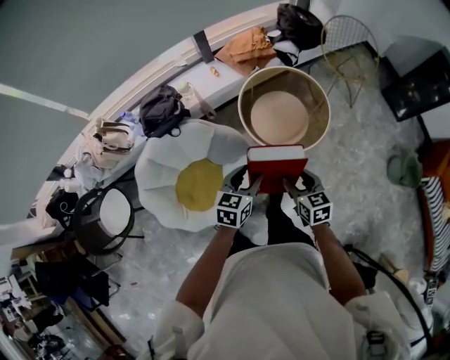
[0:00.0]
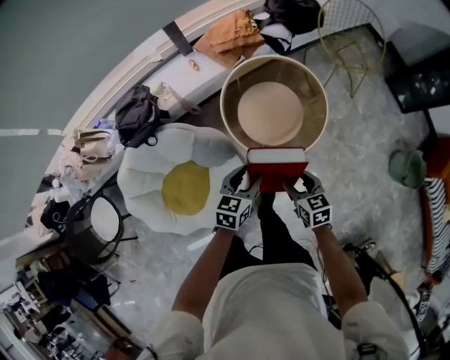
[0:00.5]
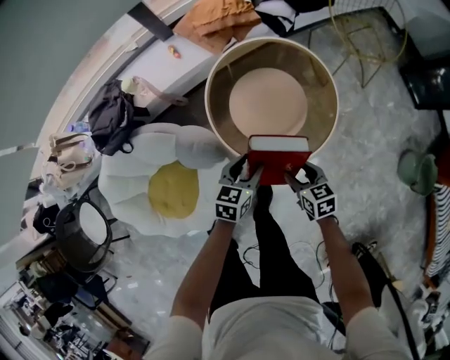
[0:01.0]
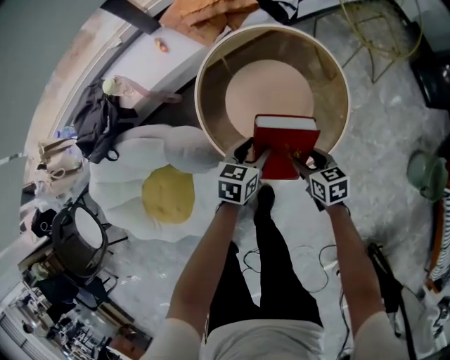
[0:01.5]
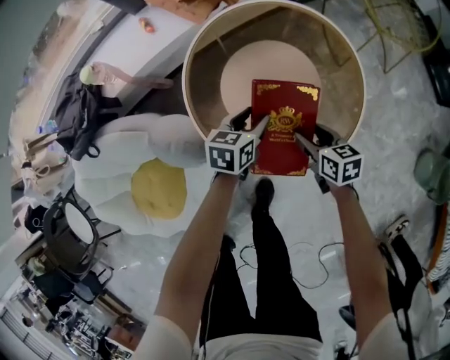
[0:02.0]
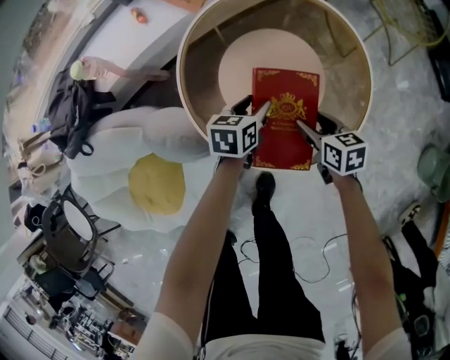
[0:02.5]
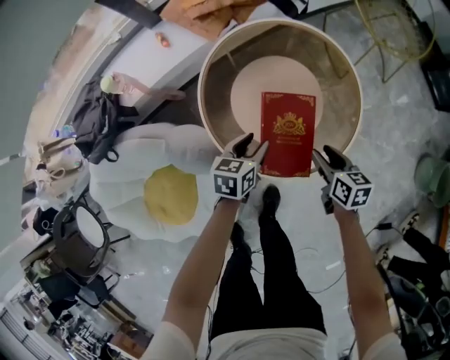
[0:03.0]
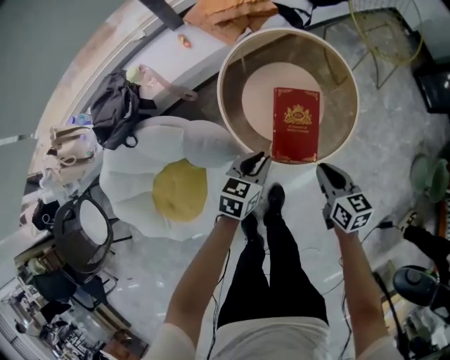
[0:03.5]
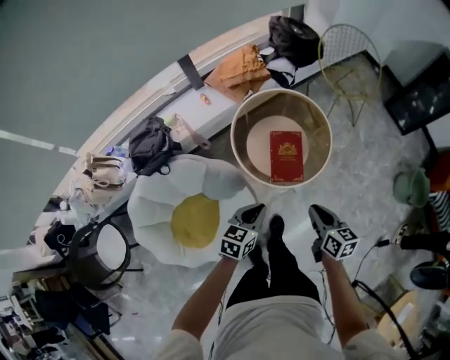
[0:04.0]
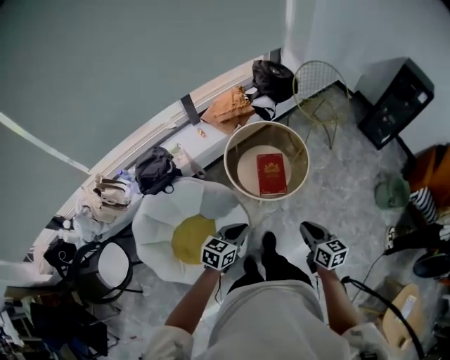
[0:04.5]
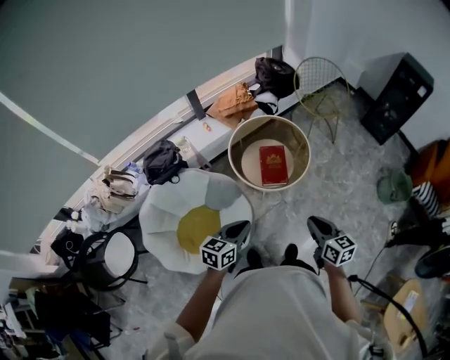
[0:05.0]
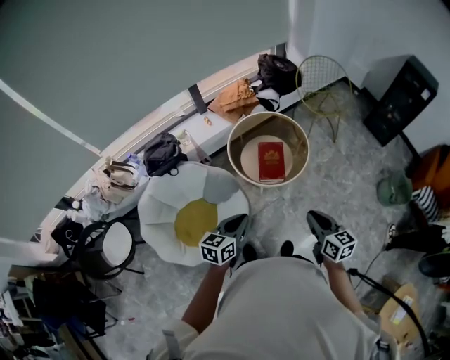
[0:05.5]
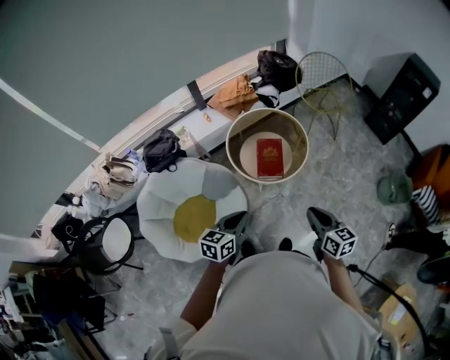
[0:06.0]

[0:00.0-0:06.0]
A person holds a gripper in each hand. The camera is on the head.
0.0 to 2.0 s: The two grippers go some 50 cm downward and forward. The right gripper turns by approximately 20 degrees.
2.0 to 4.0 s: The two grippers go approximately 40 cm upward and backward. The right gripper turns by about 20 degrees, and closes; the left gripper closes its fingers.
4.0 to 6.0 s: The right gripper moves upward, backward and to the right, some 25 cm. The left gripper travels upward and backward by about 25 cm.

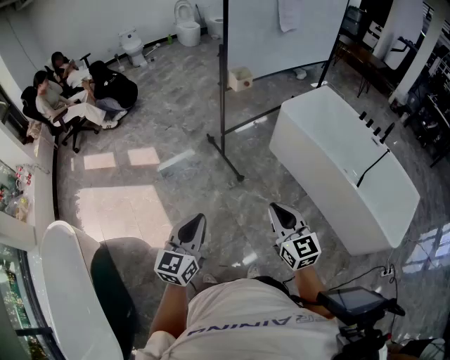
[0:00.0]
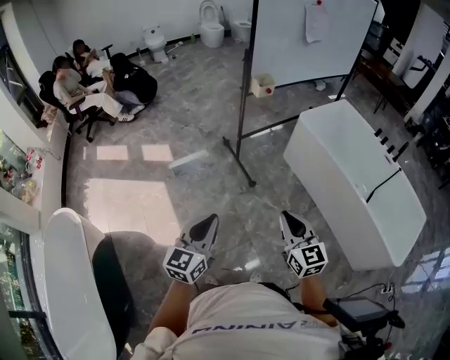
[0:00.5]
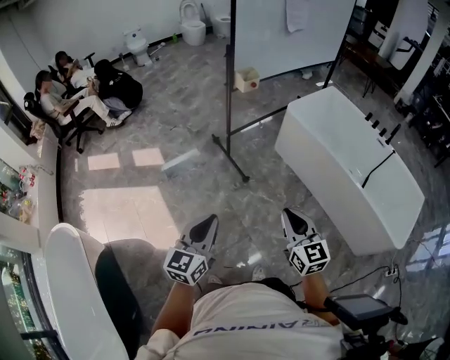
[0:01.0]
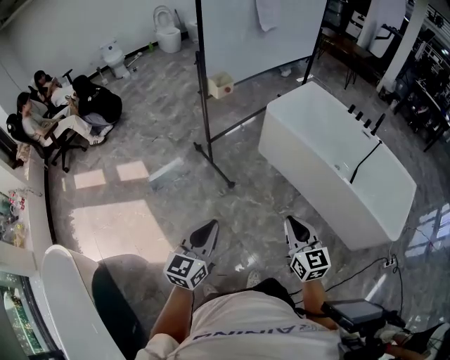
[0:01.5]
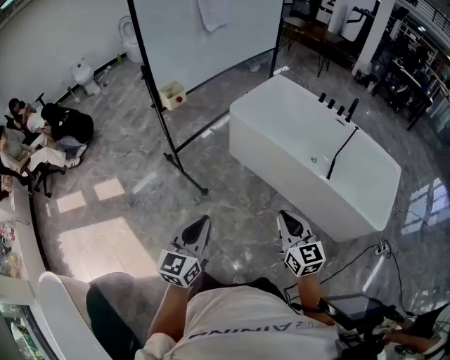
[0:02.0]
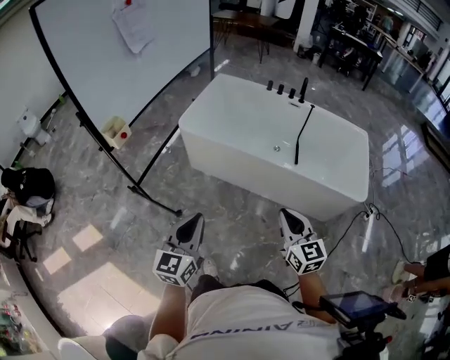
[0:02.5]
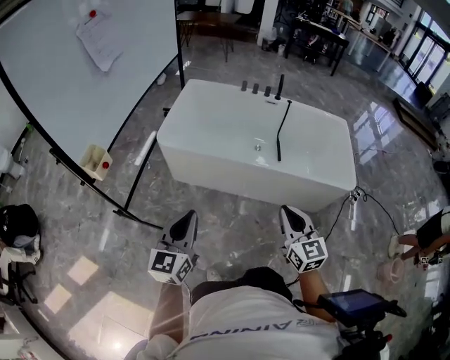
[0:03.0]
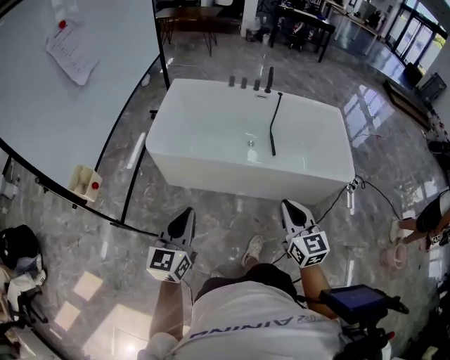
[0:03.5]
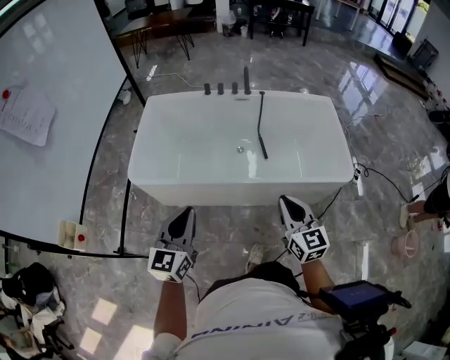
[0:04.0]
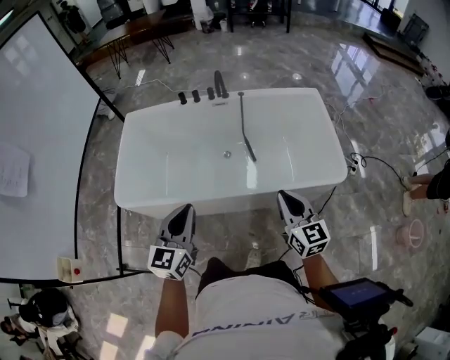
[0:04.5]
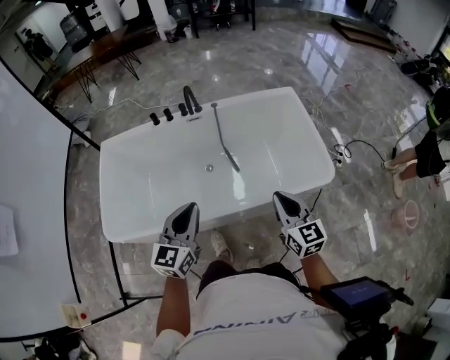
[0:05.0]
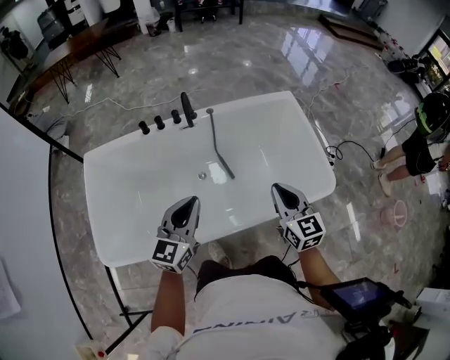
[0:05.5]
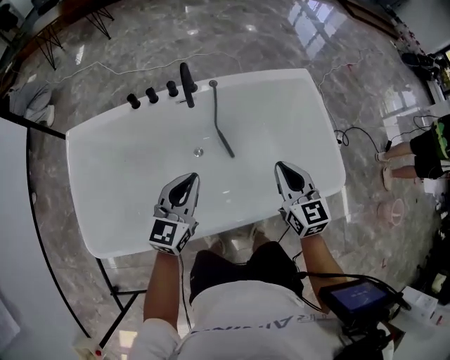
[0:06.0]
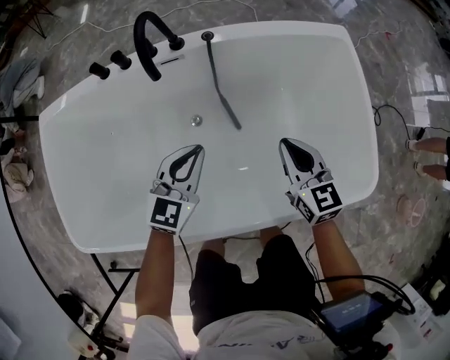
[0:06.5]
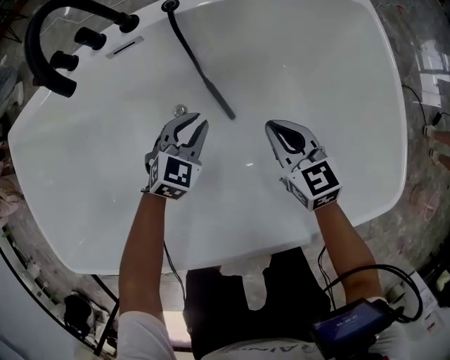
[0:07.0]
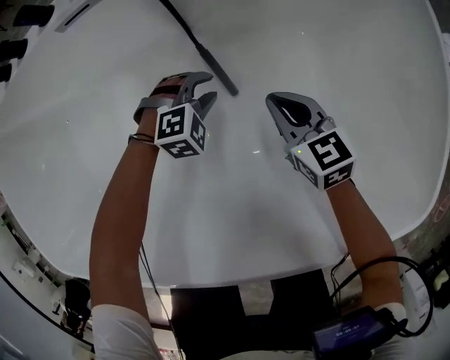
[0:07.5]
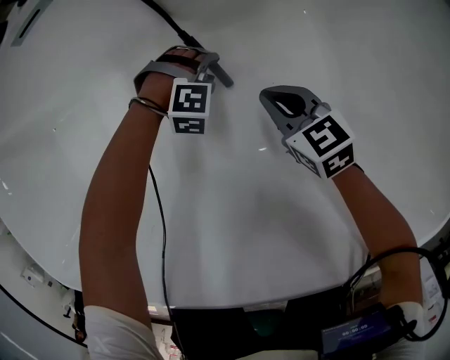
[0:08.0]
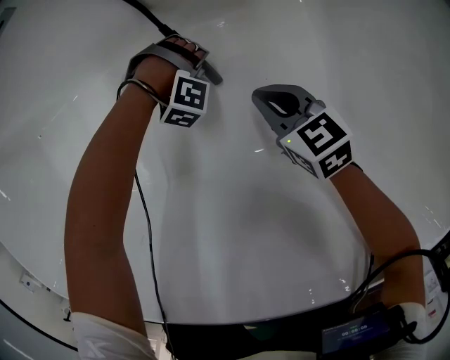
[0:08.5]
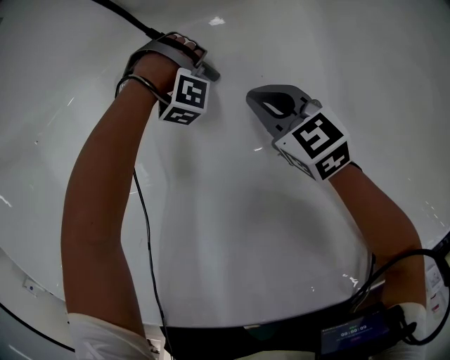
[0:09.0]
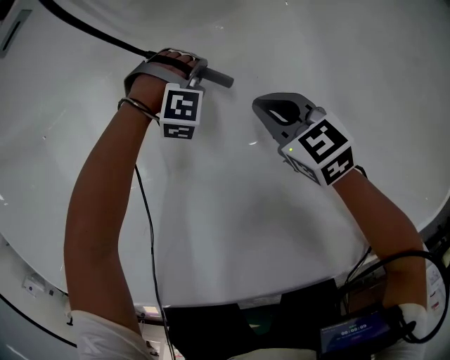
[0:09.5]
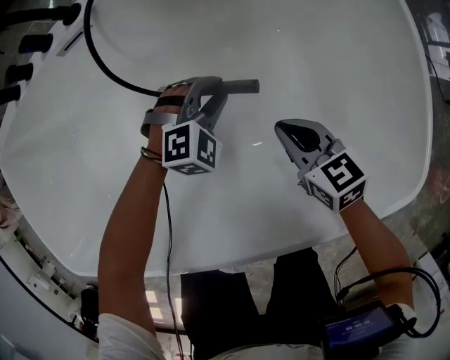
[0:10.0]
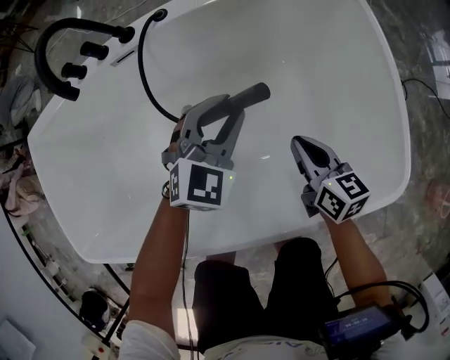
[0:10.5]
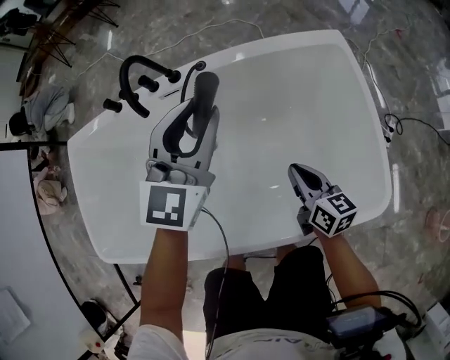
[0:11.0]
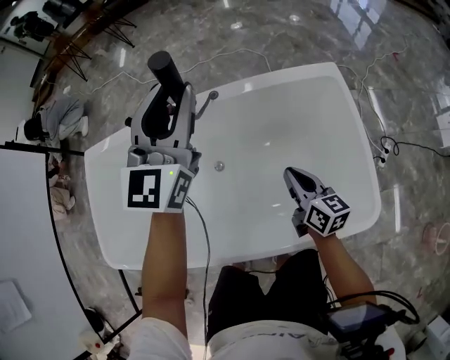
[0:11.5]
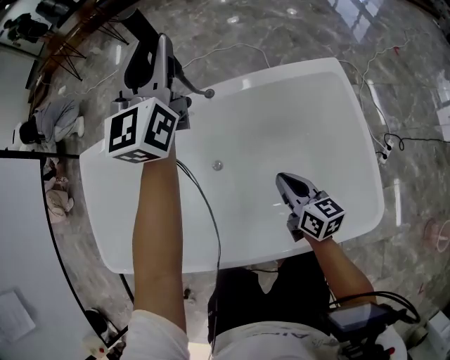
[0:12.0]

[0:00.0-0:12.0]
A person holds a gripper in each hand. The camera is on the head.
0.0 to 2.0 s: The left gripper shifts roughly 25 cm to the right and forward; the right gripper goes about 25 cm to the right, and swivels some 20 degrees.
2.0 to 4.0 s: The right gripper moves some 35 cm, and rotates about 40 degrees. The left gripper moves about 50 cm, and turns by roughly 30 degrees.
4.0 to 6.0 s: The two grippers travel together, forward, about 50 cm. The left gripper rotates approximately 20 degrees.
6.0 to 8.0 s: Both grippers move downward, about 70 cm. The right gripper rotates roughly 40 degrees. The left gripper tilts its fingers approximately 60 degrees downward, and opens up.
8.0 to 10.0 s: Both grippers move upward, approximately 20 cm. The left gripper changes its angle by about 30 degrees.
10.0 to 12.0 s: The left gripper travels upward by roughly 60 cm, and tilts its fingers about 60 degrees upward, while the right gripper travels upward by some 30 cm, and rotates some 30 degrees.

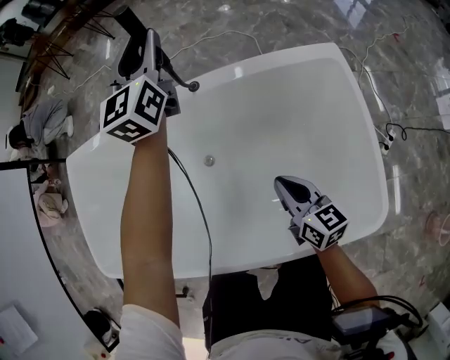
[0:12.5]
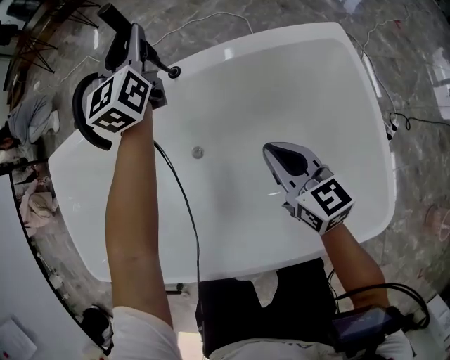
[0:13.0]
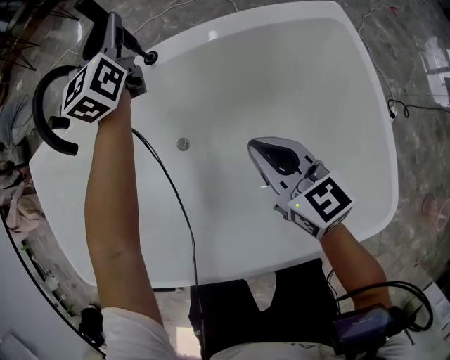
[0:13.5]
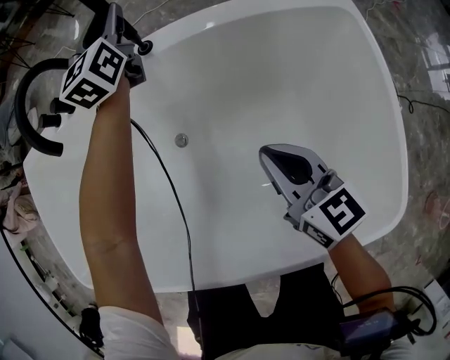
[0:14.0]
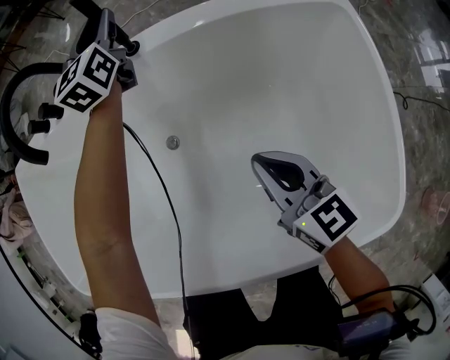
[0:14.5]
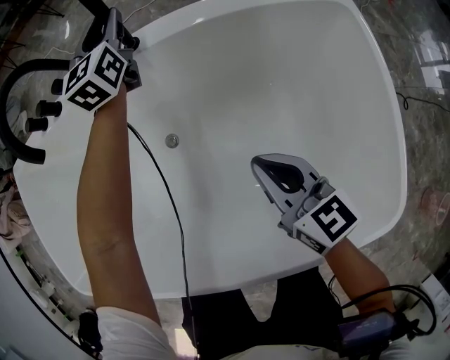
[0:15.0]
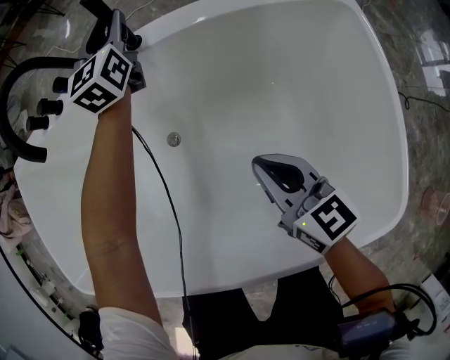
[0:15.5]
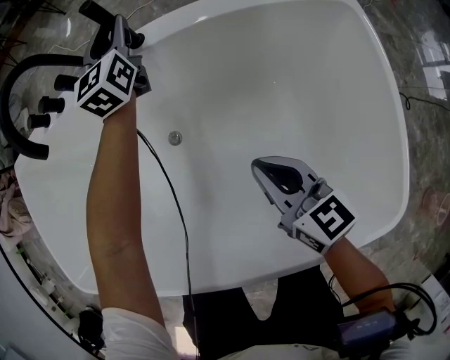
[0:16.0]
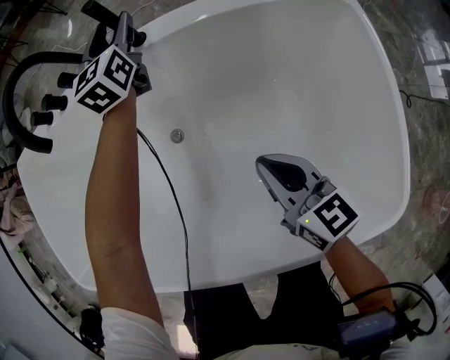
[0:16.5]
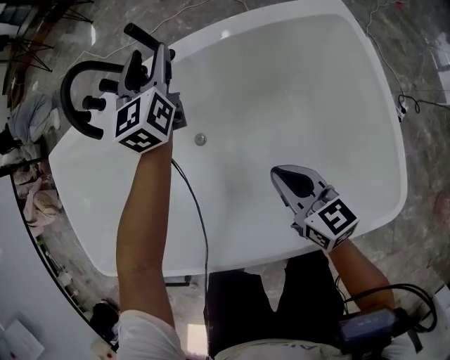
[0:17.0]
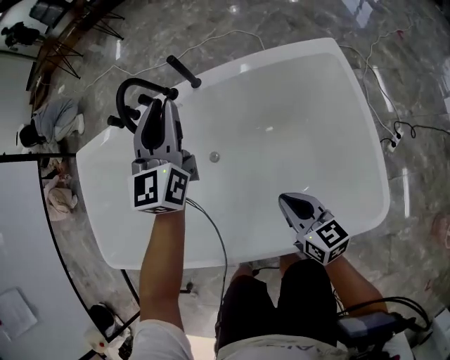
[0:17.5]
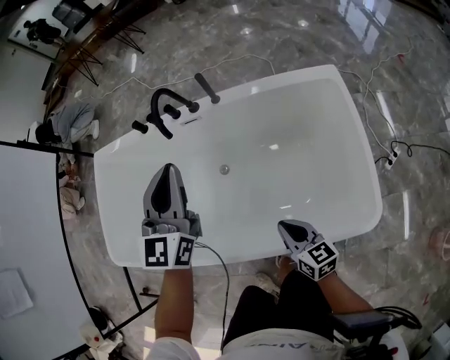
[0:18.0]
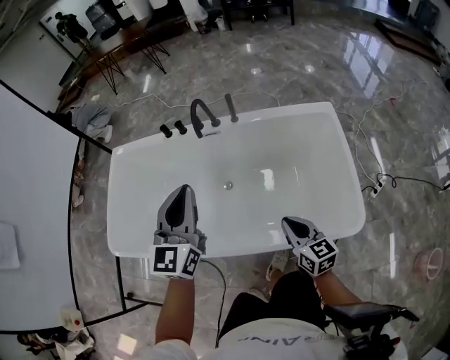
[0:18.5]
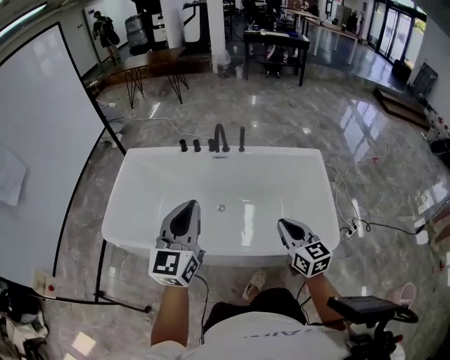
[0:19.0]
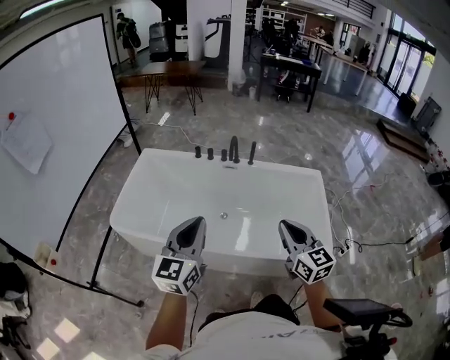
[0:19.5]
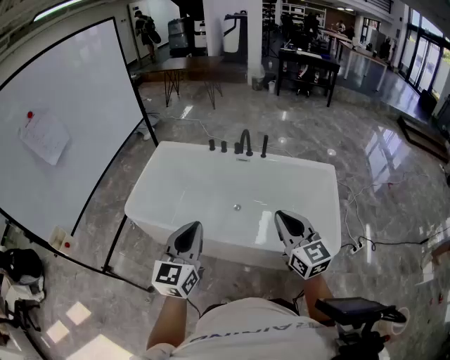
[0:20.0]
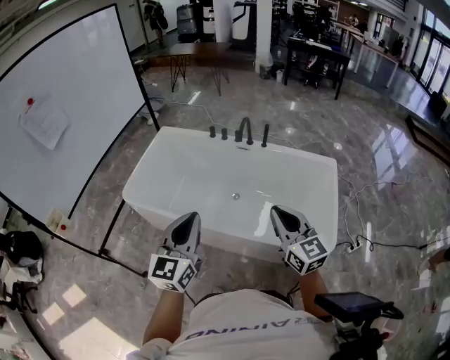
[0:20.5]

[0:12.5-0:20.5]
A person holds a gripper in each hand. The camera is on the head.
12.5 to 14.5 s: The right gripper goes about 10 cm downward. The left gripper shifts approximately 25 cm downward.
14.5 to 16.5 s: The left gripper opens its fingers.
16.5 to 18.5 s: The left gripper goes about 60 cm backward and upward, and closes, while the right gripper is displaced upward and backward by roughly 35 cm.
18.5 to 20.5 s: The right gripper moves upward and backward, some 35 cm, and swivels approximately 30 degrees, while the left gripper moves backward, approximately 35 cm.

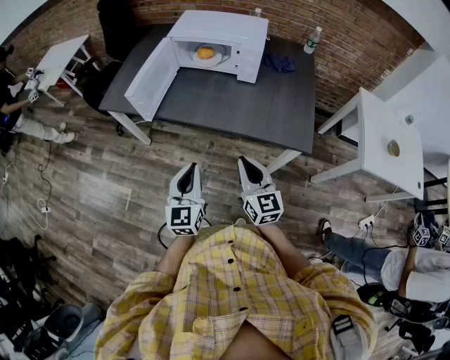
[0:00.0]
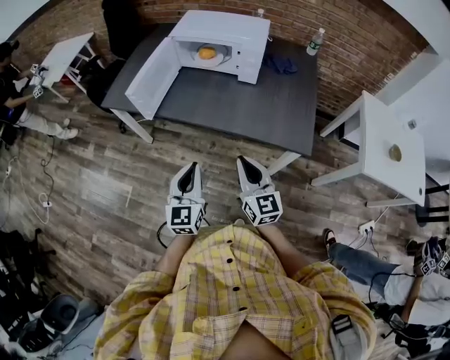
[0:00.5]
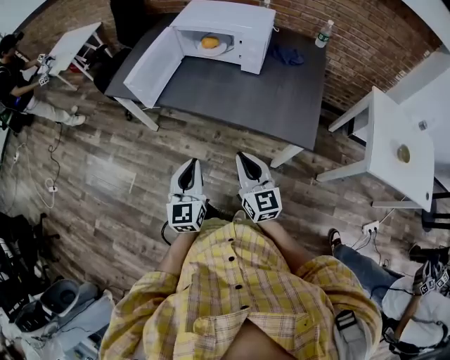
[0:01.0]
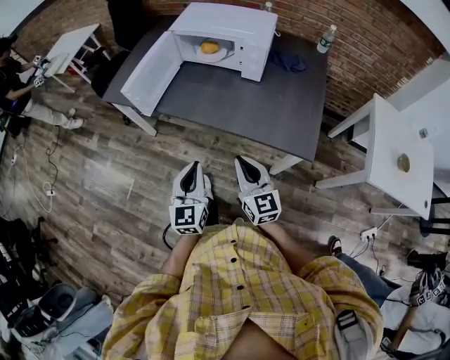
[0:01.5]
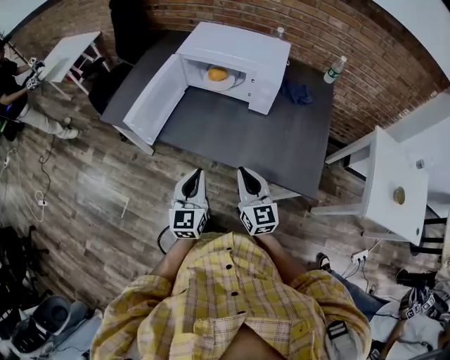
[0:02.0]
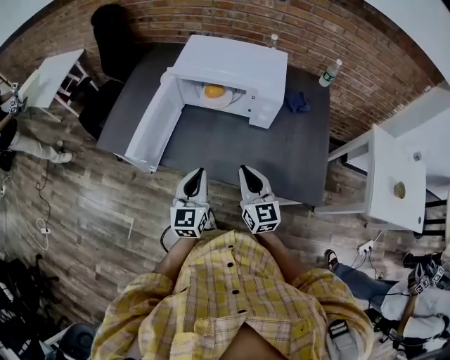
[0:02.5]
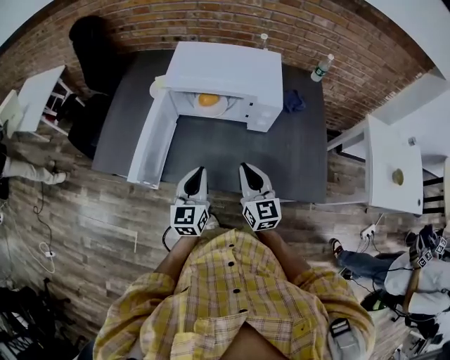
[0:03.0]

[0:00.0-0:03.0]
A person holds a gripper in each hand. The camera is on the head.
0.0 to 1.5 s: The left gripper moves to the right, some 5 cm.
1.5 to 3.0 s: Both grippers move forward, approximately 30 cm.
